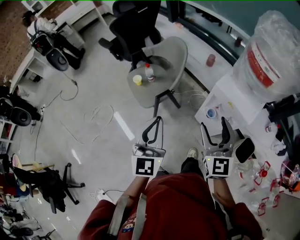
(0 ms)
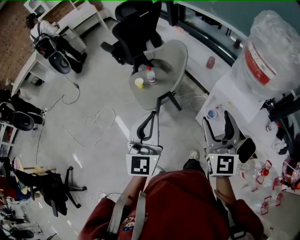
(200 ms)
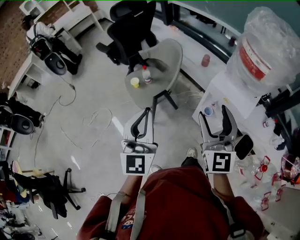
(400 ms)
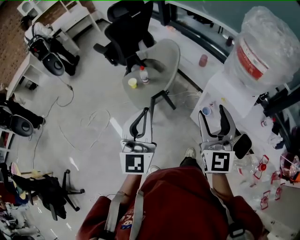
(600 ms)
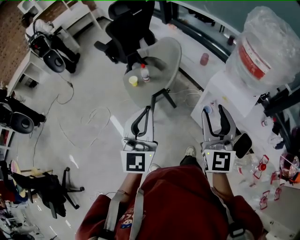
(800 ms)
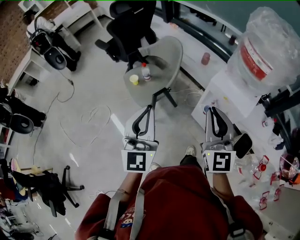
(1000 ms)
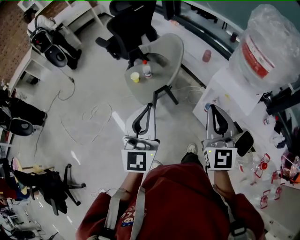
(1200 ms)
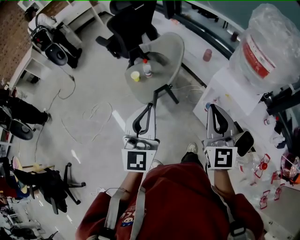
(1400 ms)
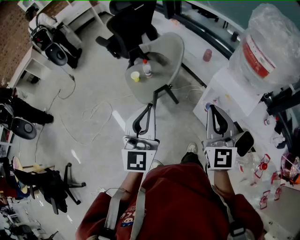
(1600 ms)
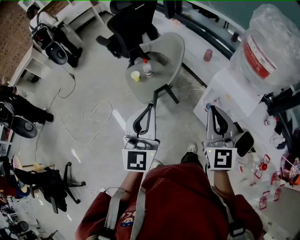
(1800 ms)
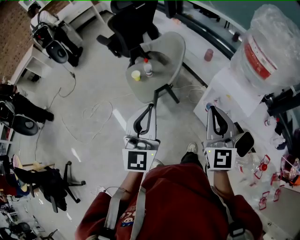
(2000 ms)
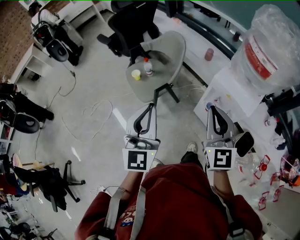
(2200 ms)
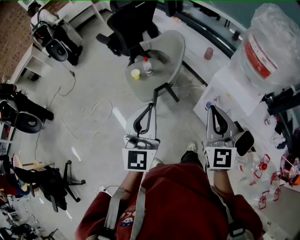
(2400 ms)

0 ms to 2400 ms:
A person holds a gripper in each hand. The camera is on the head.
0 ms to 1200 ms: Both grippers travel together upward, about 5 cm. The right gripper closes.
1200 ms to 2400 ms: The grippers make only small movements.

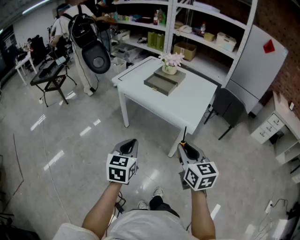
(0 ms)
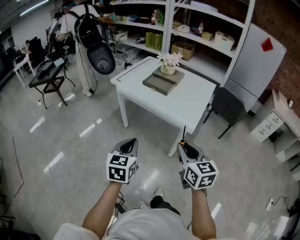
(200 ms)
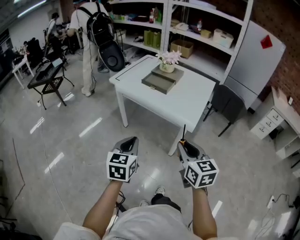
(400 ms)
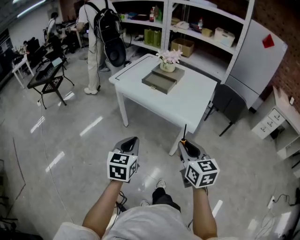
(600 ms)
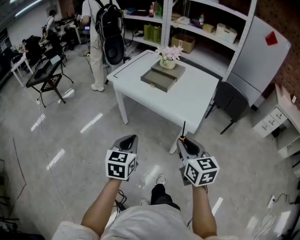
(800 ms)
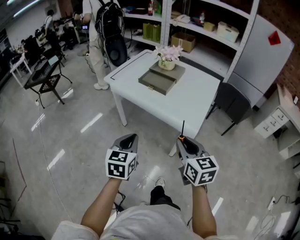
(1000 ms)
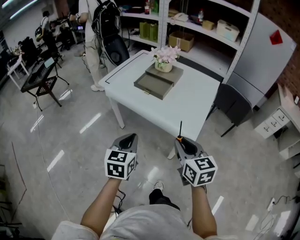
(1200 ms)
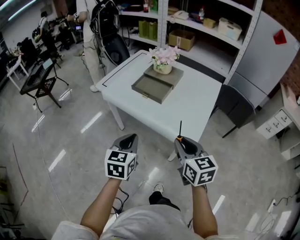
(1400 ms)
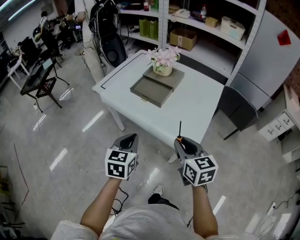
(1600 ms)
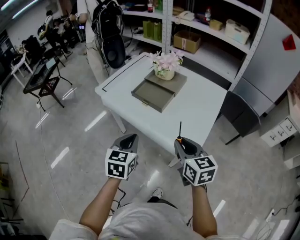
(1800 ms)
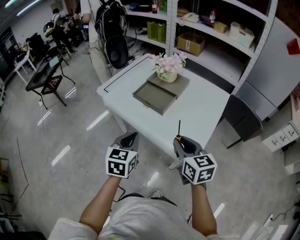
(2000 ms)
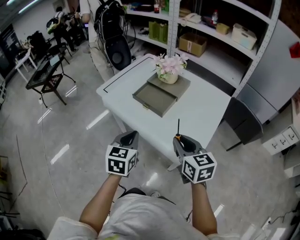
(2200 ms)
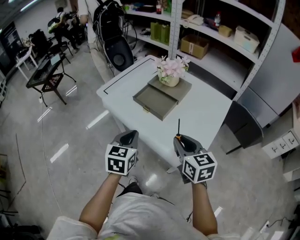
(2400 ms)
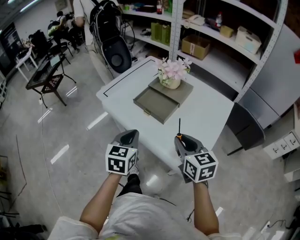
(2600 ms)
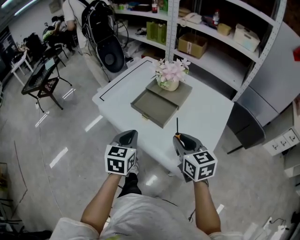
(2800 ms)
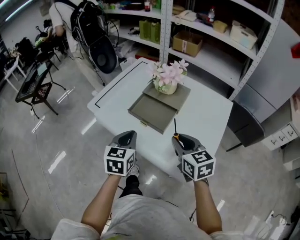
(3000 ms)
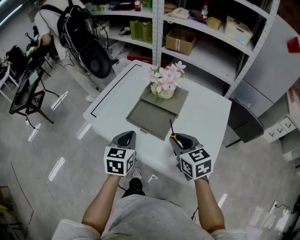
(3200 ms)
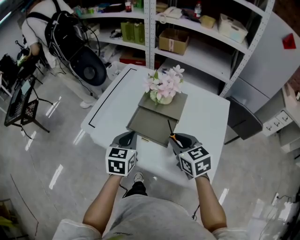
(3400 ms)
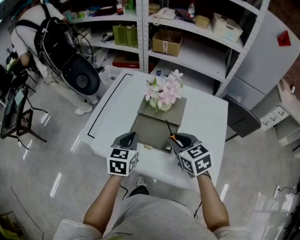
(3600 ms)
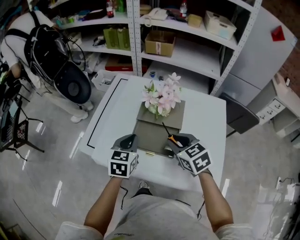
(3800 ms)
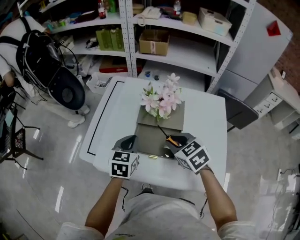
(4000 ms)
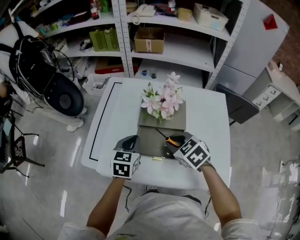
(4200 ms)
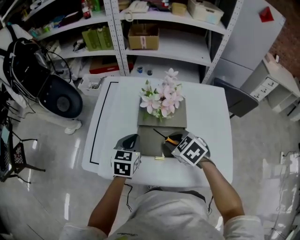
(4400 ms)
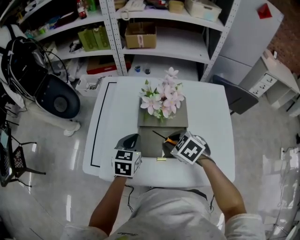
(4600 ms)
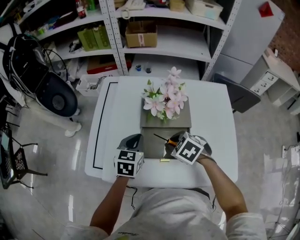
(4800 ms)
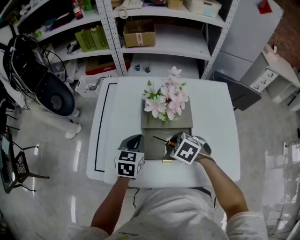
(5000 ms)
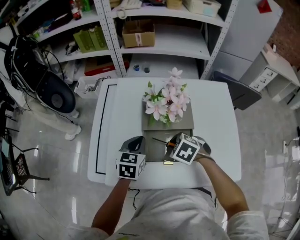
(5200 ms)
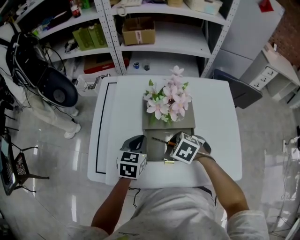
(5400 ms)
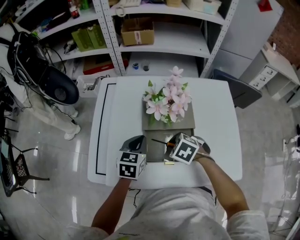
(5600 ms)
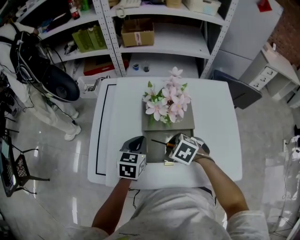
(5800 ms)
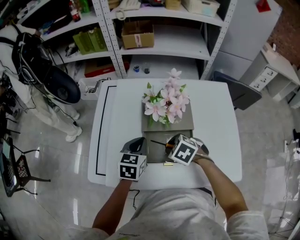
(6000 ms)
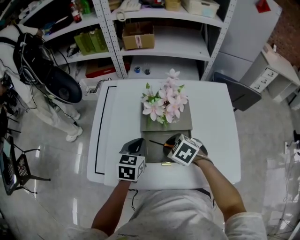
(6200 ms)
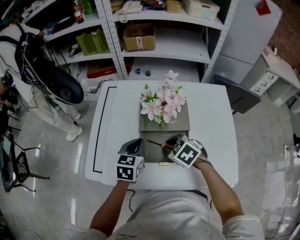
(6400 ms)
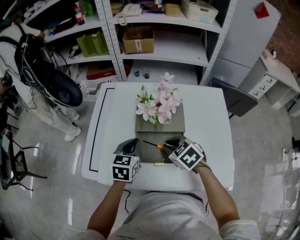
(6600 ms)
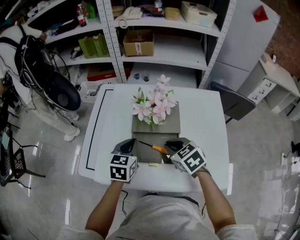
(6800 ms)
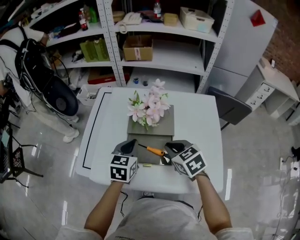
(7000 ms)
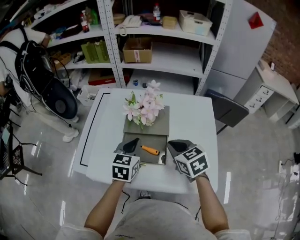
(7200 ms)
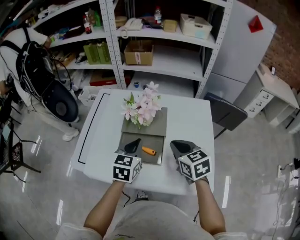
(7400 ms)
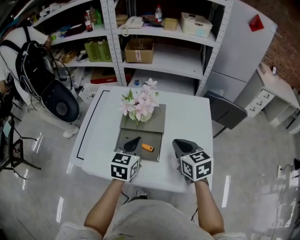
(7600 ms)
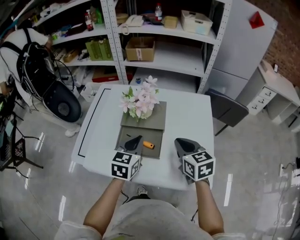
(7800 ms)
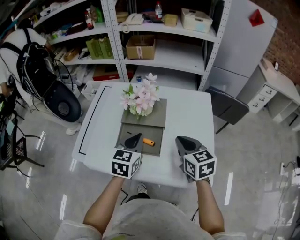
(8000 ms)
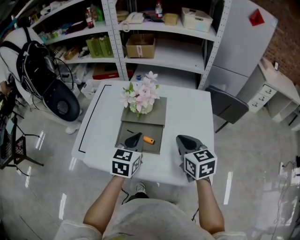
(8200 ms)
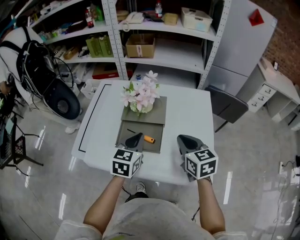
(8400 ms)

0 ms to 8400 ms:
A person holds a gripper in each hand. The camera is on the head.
0 ms to 1400 ms: Both grippers move forward, roughly 20 cm.
1400 ms to 2800 ms: The two grippers go some 20 cm forward.
2800 ms to 4200 ms: The right gripper travels forward and to the left by approximately 20 cm, and swivels about 30 degrees; the left gripper moves forward, about 25 cm, and changes its angle by approximately 30 degrees.
4200 ms to 5600 ms: The right gripper goes about 10 cm downward, and swivels roughly 20 degrees; the left gripper moves roughly 5 cm.
5600 ms to 7000 ms: The left gripper shifts about 5 cm upward. The right gripper is displaced upward and to the right by about 15 cm, and rotates roughly 30 degrees.
7000 ms to 8400 ms: The left gripper shifts approximately 10 cm to the right and backward; the right gripper travels to the right, backward and upward by approximately 10 cm, and turns by some 20 degrees.

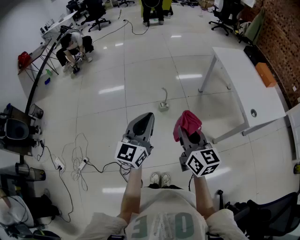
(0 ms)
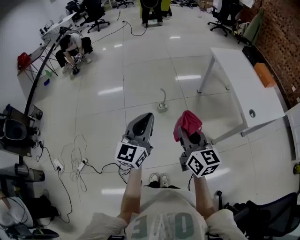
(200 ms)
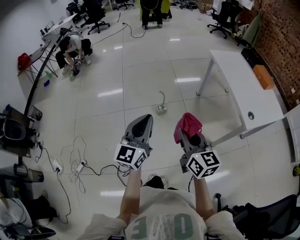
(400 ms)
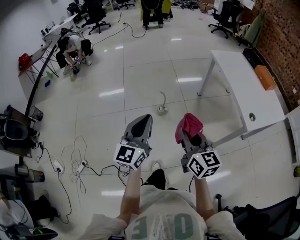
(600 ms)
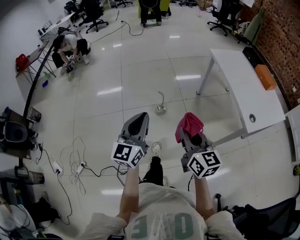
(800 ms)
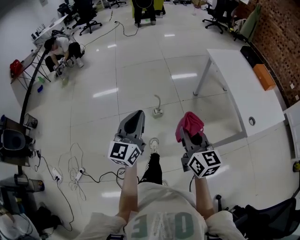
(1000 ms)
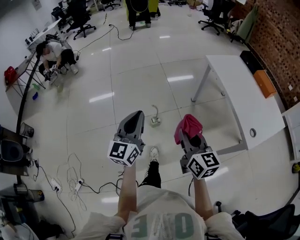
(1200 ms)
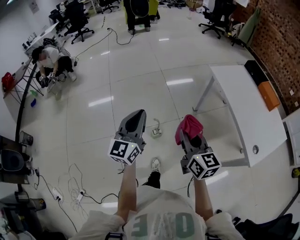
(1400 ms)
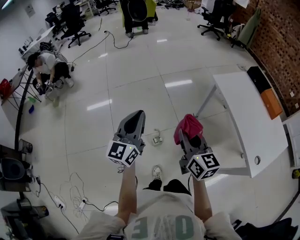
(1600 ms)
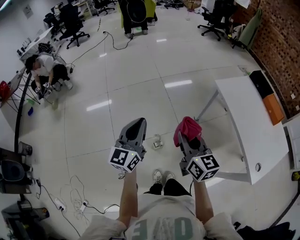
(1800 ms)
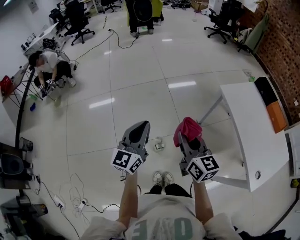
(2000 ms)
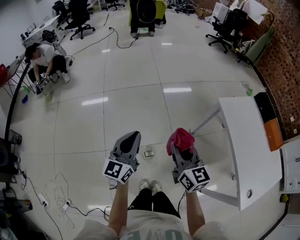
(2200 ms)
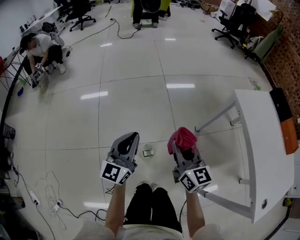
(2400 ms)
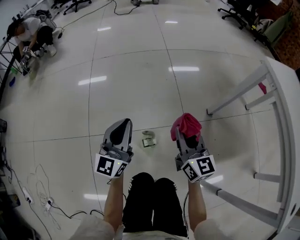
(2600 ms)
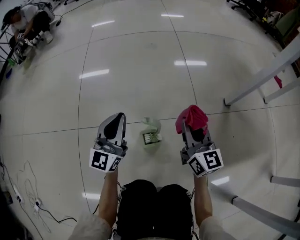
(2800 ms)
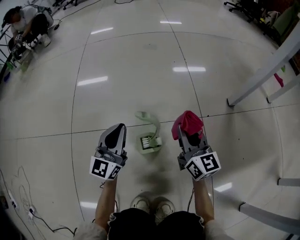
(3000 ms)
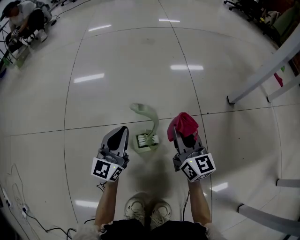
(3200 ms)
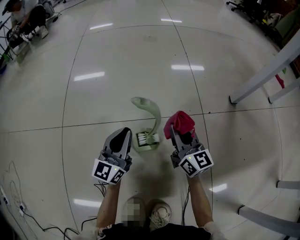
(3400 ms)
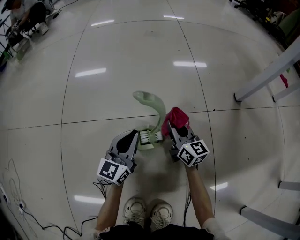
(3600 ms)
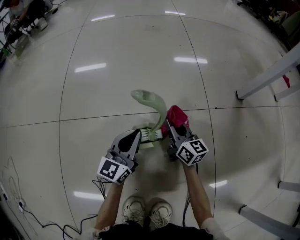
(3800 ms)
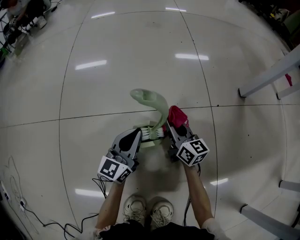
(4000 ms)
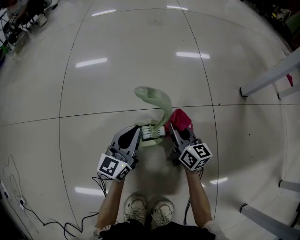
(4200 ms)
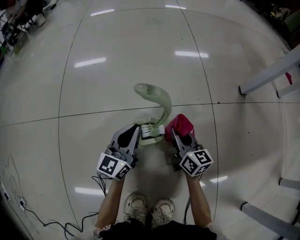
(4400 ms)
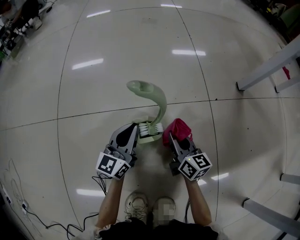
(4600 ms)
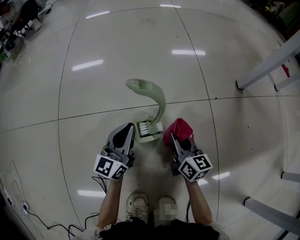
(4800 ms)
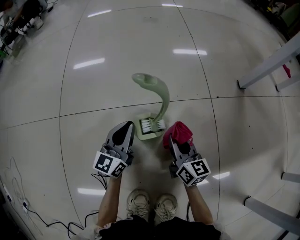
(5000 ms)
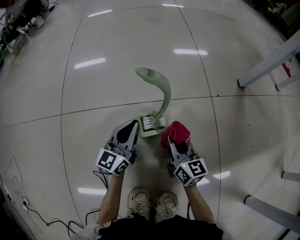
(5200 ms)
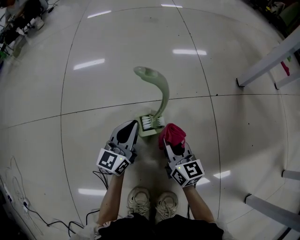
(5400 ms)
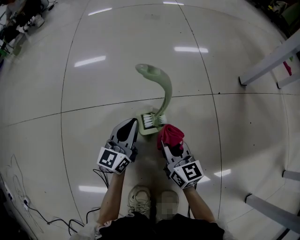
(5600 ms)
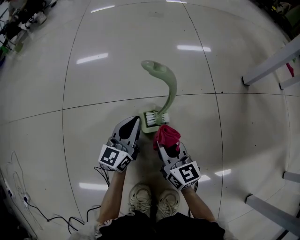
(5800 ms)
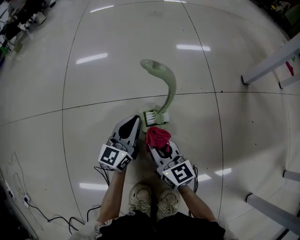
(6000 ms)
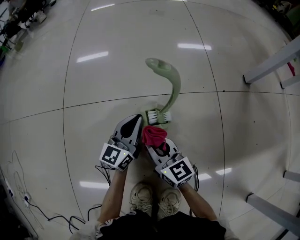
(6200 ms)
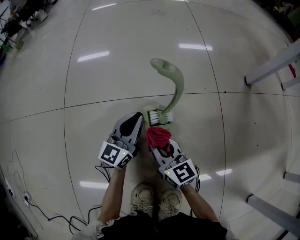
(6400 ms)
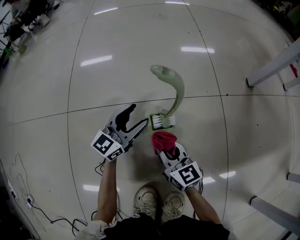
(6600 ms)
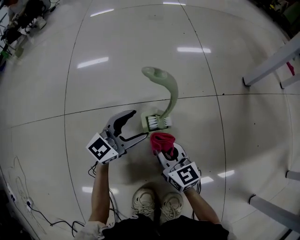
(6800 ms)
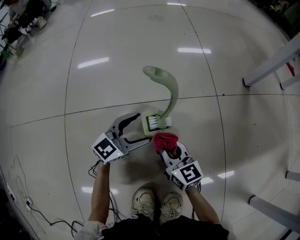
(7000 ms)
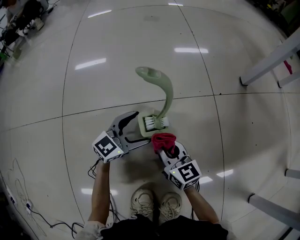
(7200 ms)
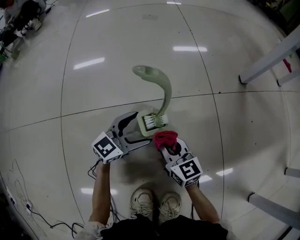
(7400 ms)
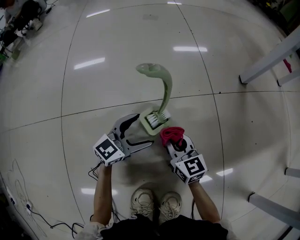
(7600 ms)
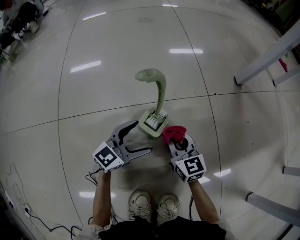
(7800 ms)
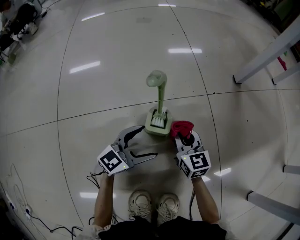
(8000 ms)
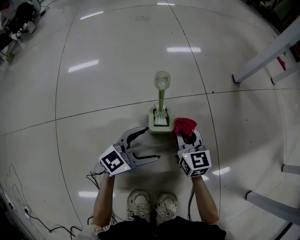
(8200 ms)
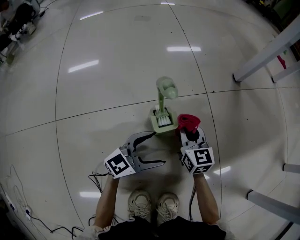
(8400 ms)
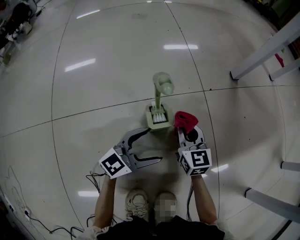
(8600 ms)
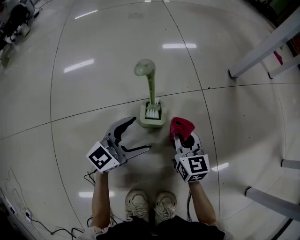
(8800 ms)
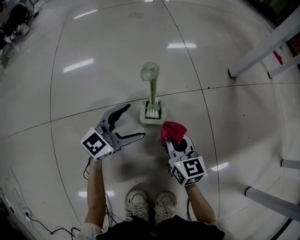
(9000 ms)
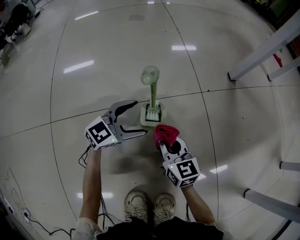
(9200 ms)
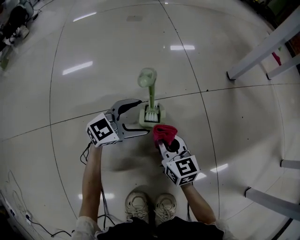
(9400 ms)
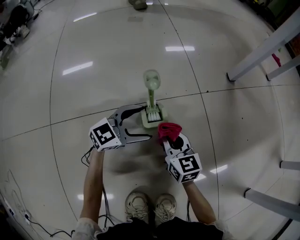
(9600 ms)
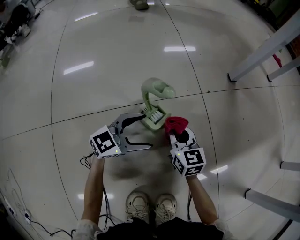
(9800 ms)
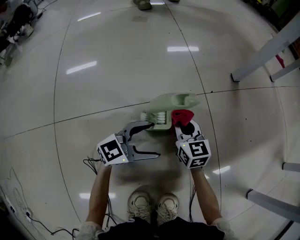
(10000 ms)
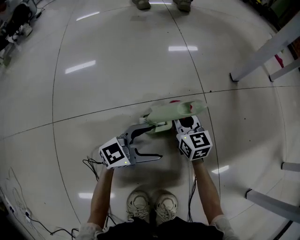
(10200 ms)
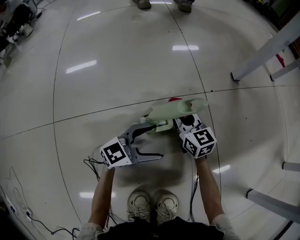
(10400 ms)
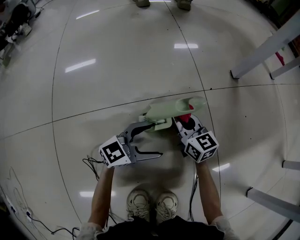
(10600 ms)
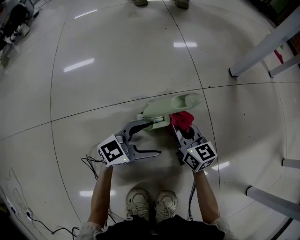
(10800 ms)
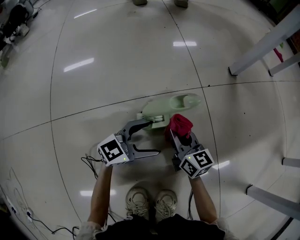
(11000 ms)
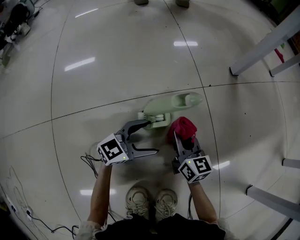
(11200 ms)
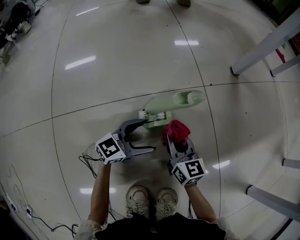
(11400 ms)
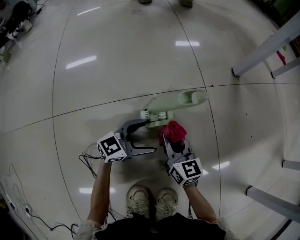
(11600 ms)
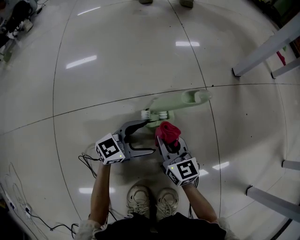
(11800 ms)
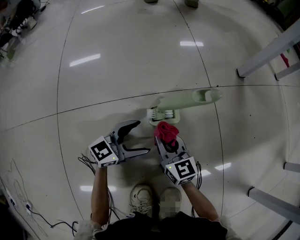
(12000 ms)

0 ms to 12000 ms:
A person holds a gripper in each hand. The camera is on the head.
0 ms to 1600 ms: The two grippers go approximately 40 cm forward.
1600 ms to 3000 ms: Both grippers move downward, approximately 80 cm.
3000 ms to 4400 ms: The grippers both shift downward by approximately 15 cm.
4400 ms to 6000 ms: The right gripper goes approximately 15 cm to the left and backward.
6000 ms to 7600 ms: The left gripper moves about 5 cm, changes its angle by roughly 40 degrees, and opens up. The right gripper heads to the right, covering approximately 5 cm.
7600 ms to 9000 ms: The left gripper travels to the right and back again, some 10 cm each way.
9000 ms to 10400 ms: The right gripper travels forward by about 10 cm. The left gripper is displaced to the right by roughly 10 cm.
10400 ms to 12000 ms: The right gripper travels backward by approximately 15 cm; the left gripper is displaced to the left by roughly 5 cm.

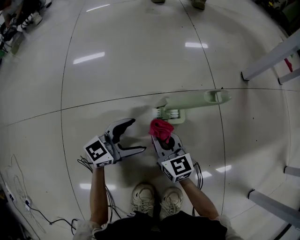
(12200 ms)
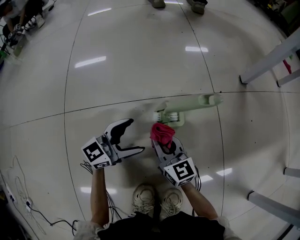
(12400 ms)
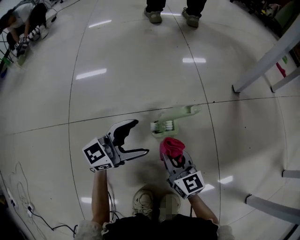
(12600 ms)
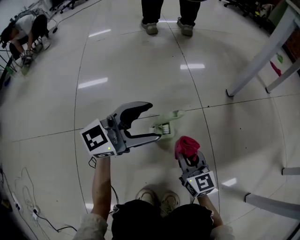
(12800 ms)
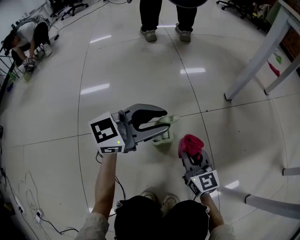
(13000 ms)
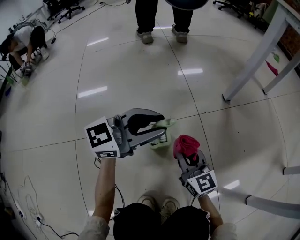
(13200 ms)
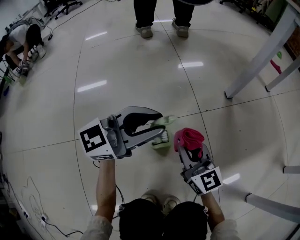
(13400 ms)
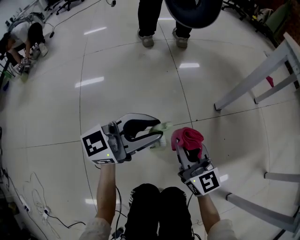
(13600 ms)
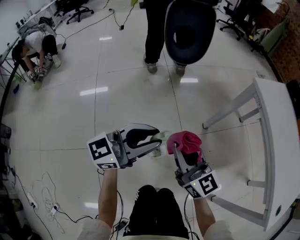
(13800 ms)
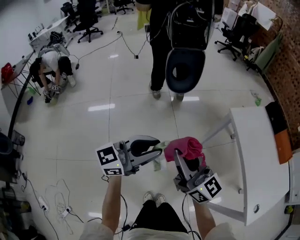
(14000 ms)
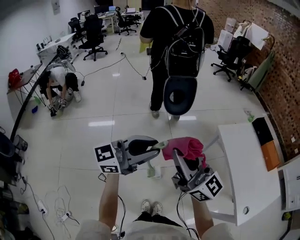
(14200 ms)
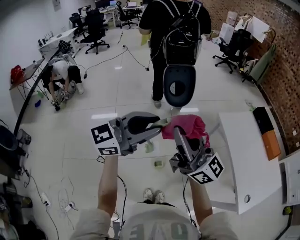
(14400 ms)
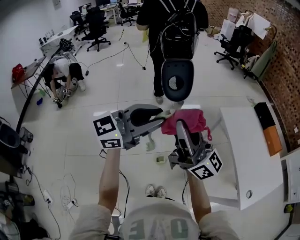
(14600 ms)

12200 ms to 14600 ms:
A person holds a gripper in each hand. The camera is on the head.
12200 ms to 13400 ms: The left gripper heads upward, covering about 30 cm, rotates approximately 20 degrees, and closes its fingers. The right gripper shifts some 25 cm upward and to the right.
13400 ms to 14600 ms: Both grippers move upward, some 80 cm. The right gripper angles its fingers upward, by approximately 40 degrees.
